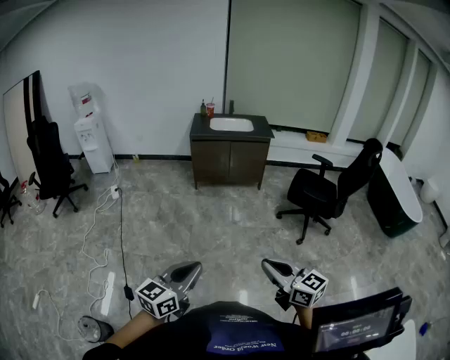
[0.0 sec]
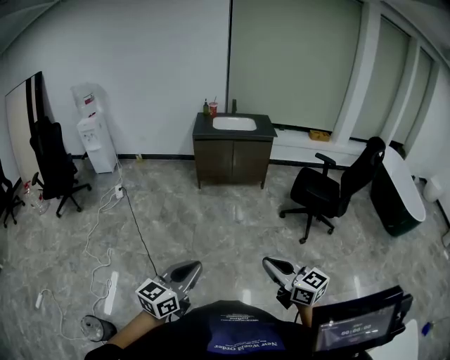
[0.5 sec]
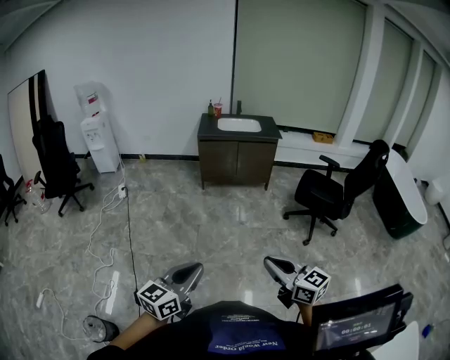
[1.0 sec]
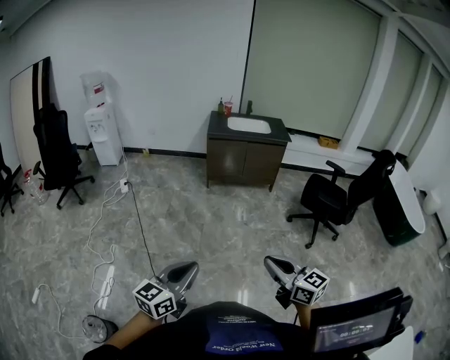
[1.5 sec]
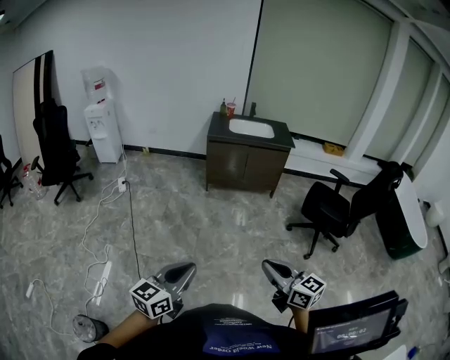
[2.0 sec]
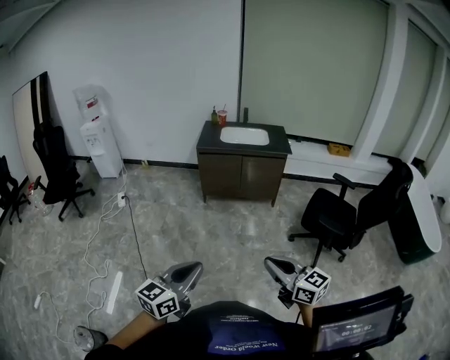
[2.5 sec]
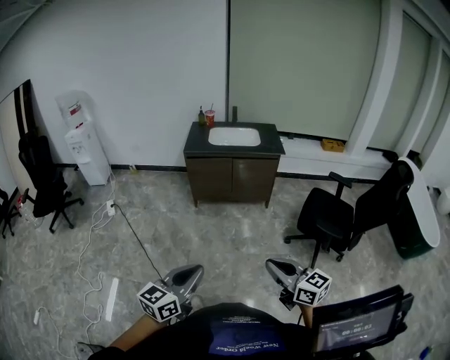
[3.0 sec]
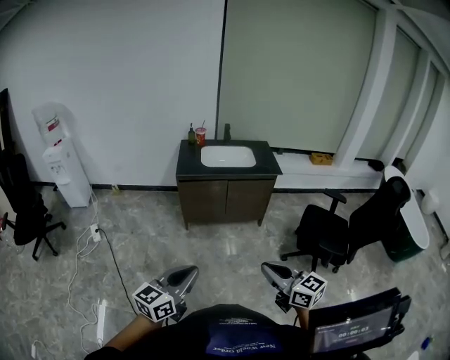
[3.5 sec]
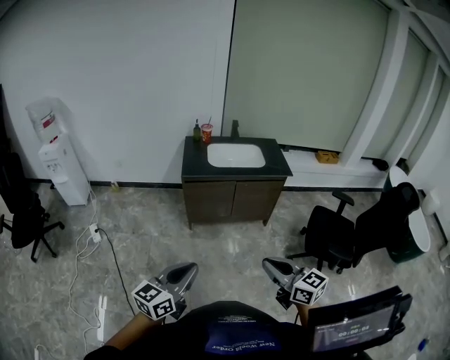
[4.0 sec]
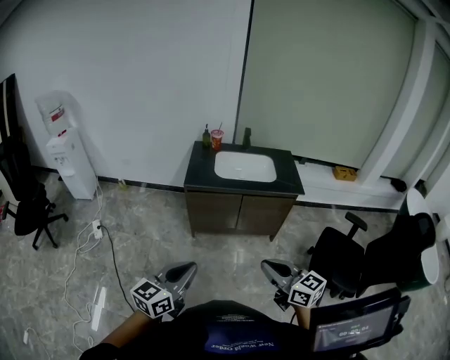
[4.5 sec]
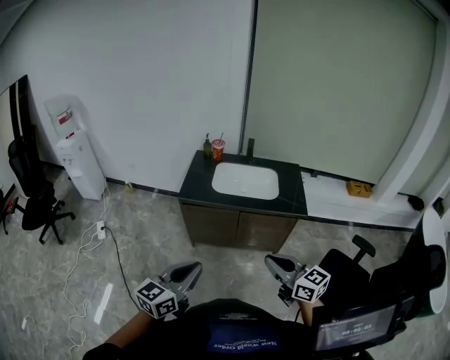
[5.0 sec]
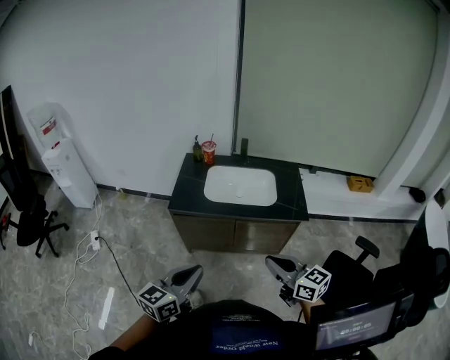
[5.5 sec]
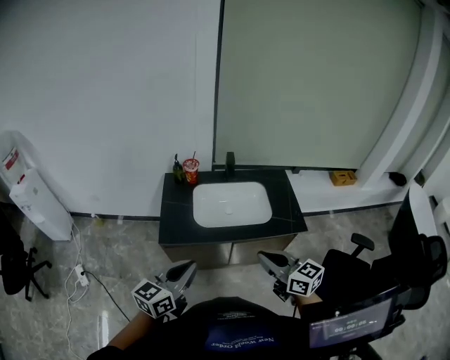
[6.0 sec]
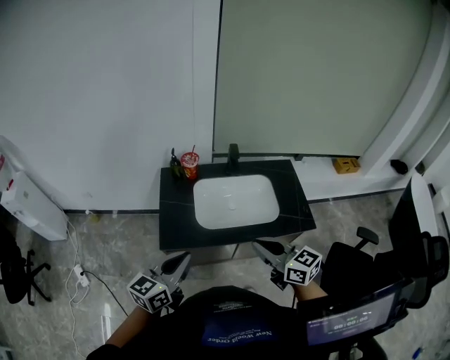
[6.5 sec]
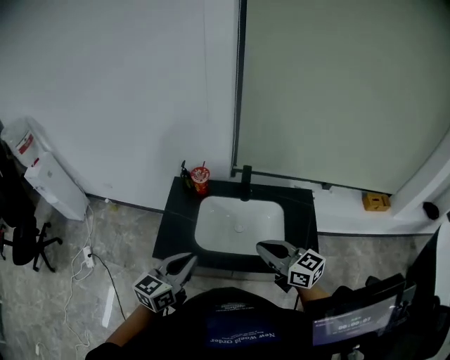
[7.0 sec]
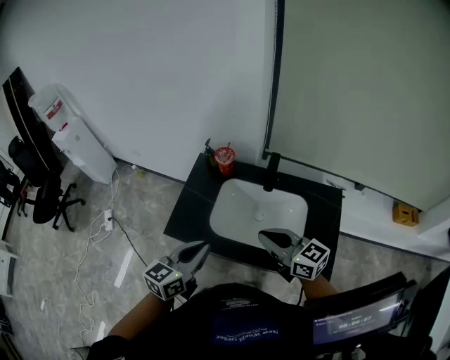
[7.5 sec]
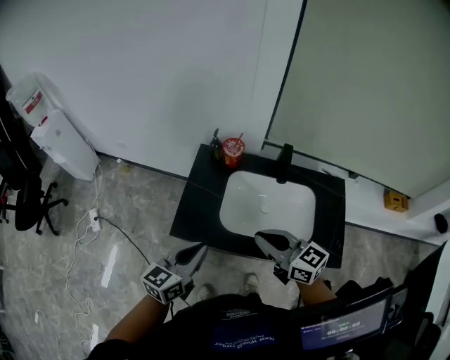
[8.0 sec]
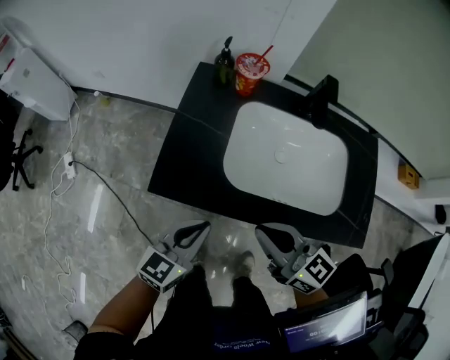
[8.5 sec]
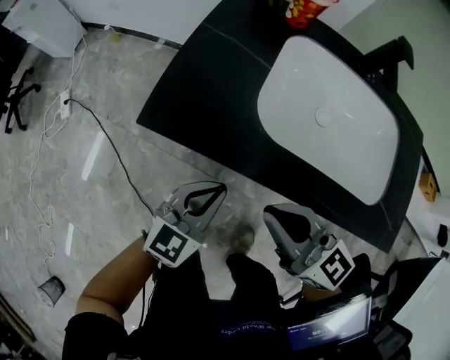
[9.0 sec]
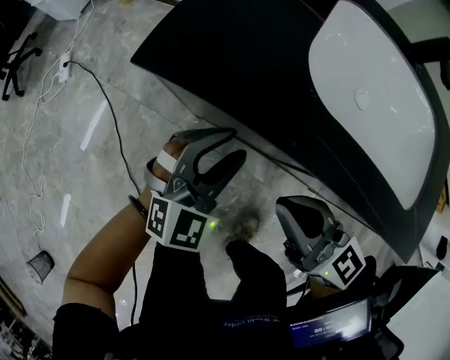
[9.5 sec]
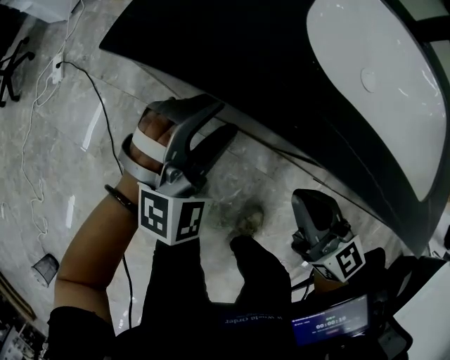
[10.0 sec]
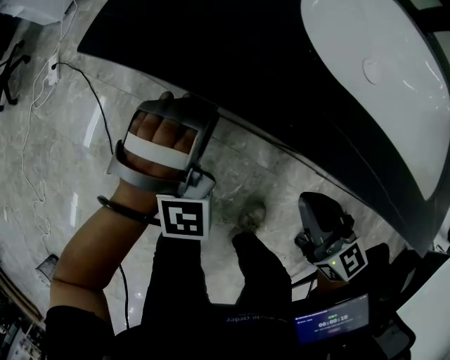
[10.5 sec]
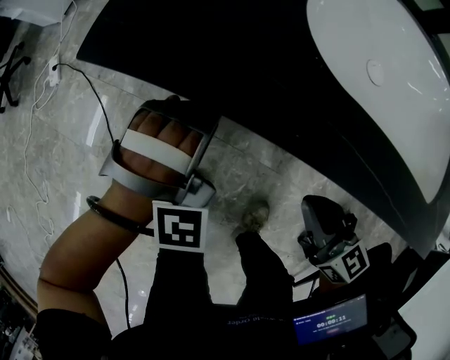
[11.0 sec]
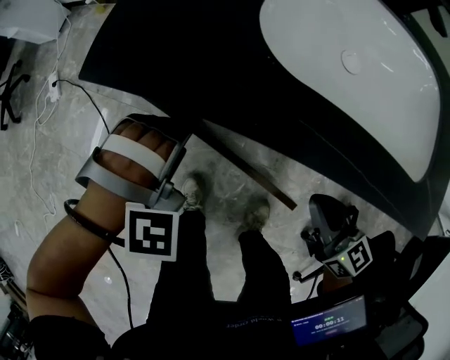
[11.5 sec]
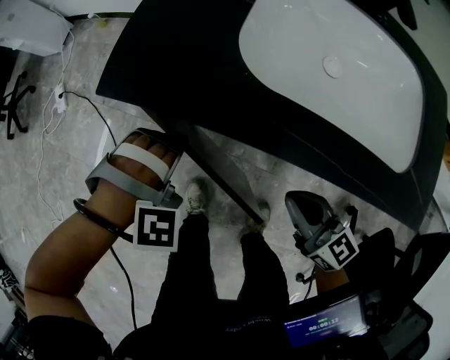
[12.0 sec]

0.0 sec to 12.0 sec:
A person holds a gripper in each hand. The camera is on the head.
0.0 sec to 2.0 sec: Both grippers move forward and to the left, some 15 cm.
2.0 sec to 4.0 sec: Both grippers are carried forward, approximately 50 cm.
4.0 sec to 6.0 sec: The pair of grippers is taken forward, about 50 cm.
6.0 sec to 8.0 sec: The right gripper moves some 25 cm, and rotates about 20 degrees; the left gripper moves some 20 cm.
8.0 sec to 10.0 sec: The grippers both shift downward by roughly 35 cm. The left gripper twists roughly 70 degrees clockwise, seen from behind, and opens up.
10.0 sec to 12.0 sec: The left gripper goes some 5 cm to the left, and tilts its fingers some 40 degrees downward.

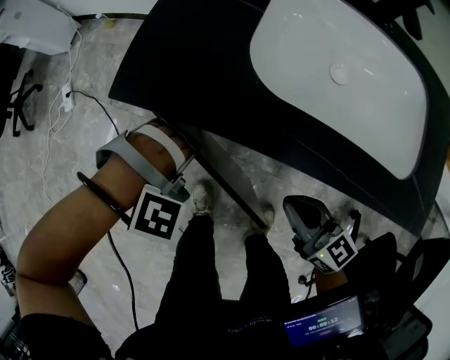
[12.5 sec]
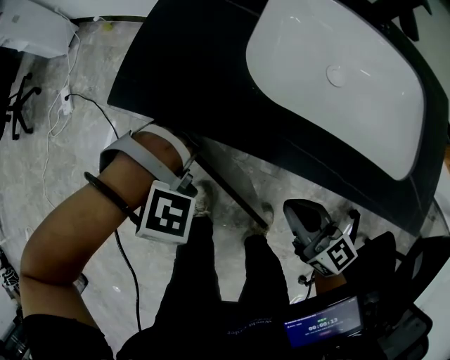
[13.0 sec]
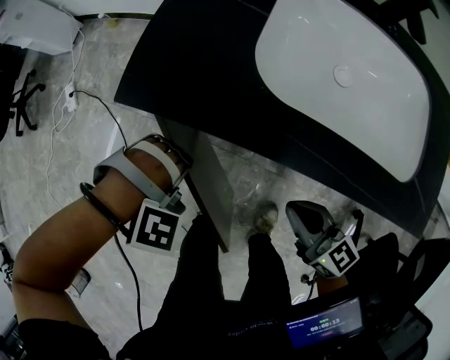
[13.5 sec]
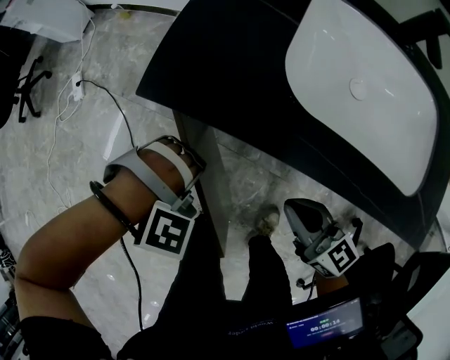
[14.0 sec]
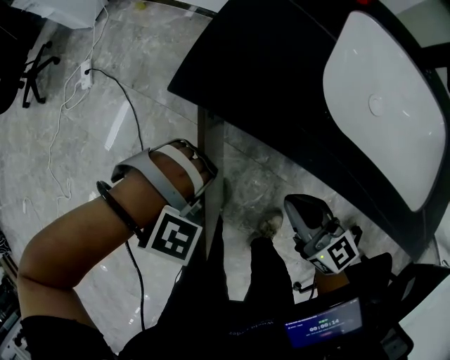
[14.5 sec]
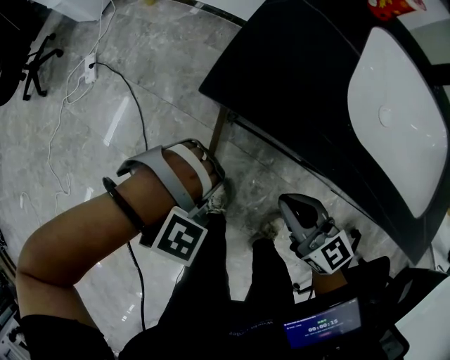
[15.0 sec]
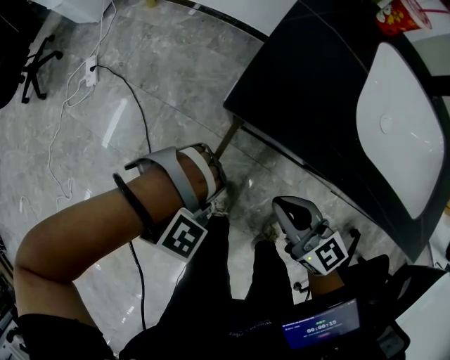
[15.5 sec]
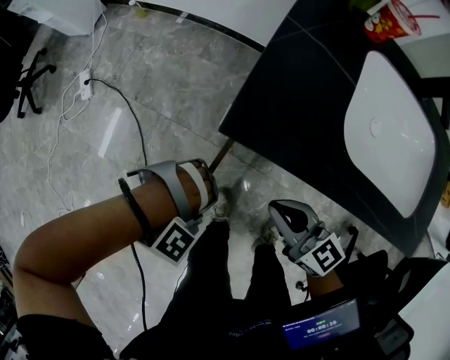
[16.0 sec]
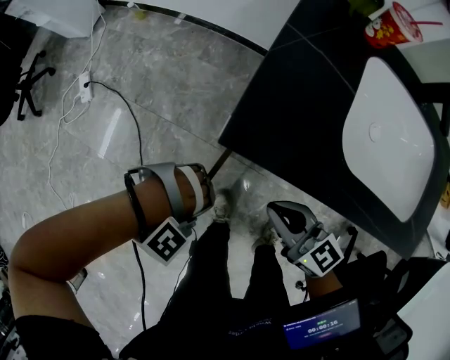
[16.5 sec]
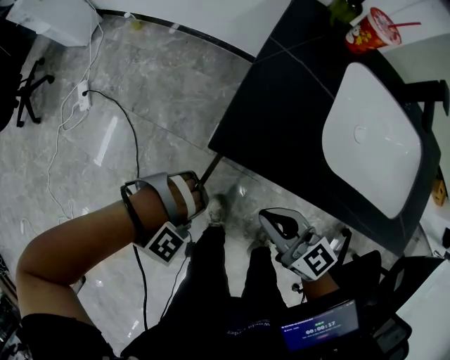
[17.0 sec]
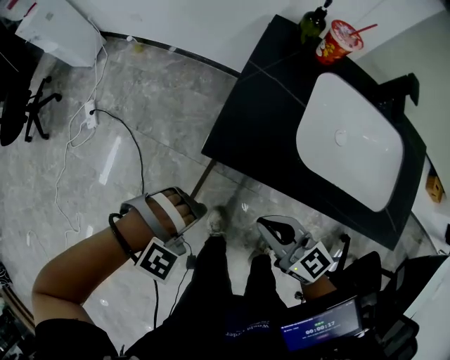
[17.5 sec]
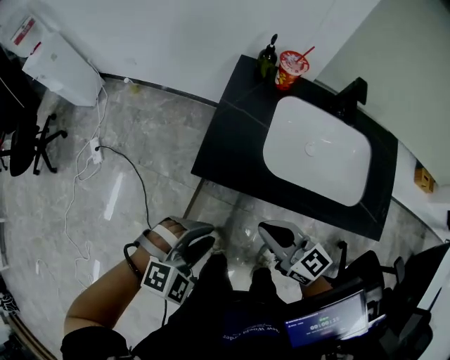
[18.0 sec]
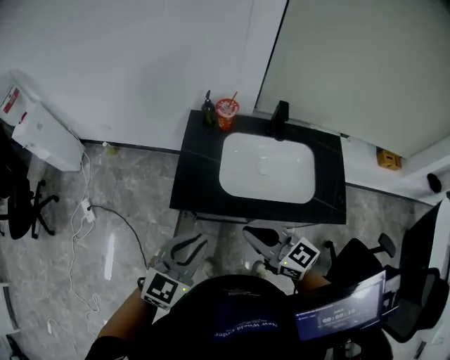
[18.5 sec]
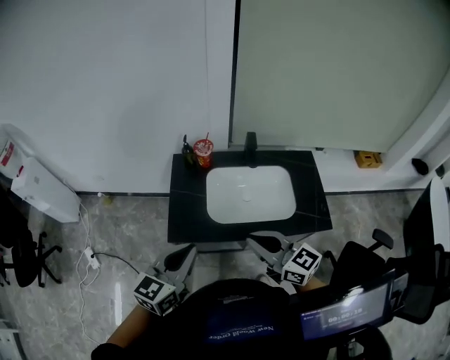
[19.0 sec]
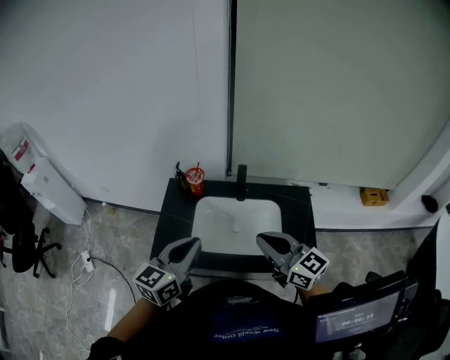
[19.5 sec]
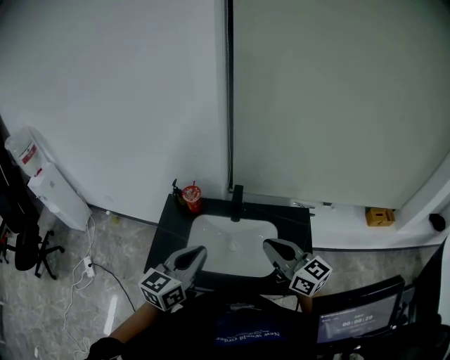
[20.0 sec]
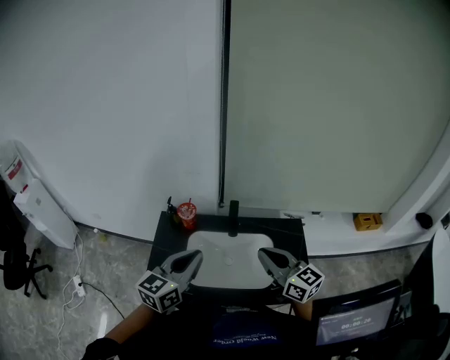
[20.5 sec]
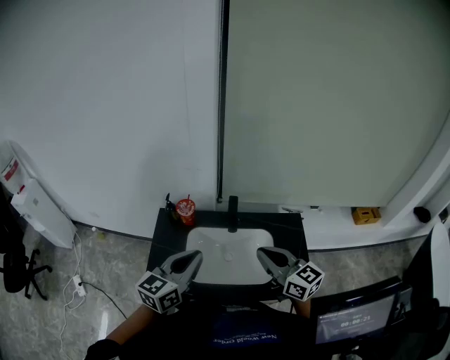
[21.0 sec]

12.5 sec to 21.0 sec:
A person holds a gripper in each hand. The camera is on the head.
12.5 sec to 14.5 sec: The left gripper heads to the left, covering roughly 10 cm. Meanwhile the right gripper moves to the left and forward, roughly 10 cm.
14.5 sec to 16.5 sec: The right gripper changes place by some 10 cm; the left gripper changes place by some 10 cm, and swivels approximately 30 degrees.
16.5 sec to 19.0 sec: The two grippers go about 40 cm upward. The right gripper swivels approximately 30 degrees. Meanwhile the left gripper tilts its fingers roughly 60 degrees upward, and closes.
19.0 sec to 21.0 sec: The right gripper shifts approximately 20 cm to the right and forward. The left gripper goes roughly 20 cm forward and to the right.

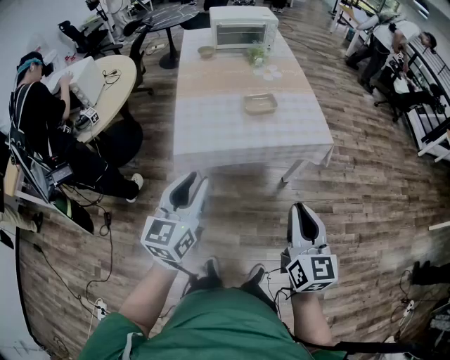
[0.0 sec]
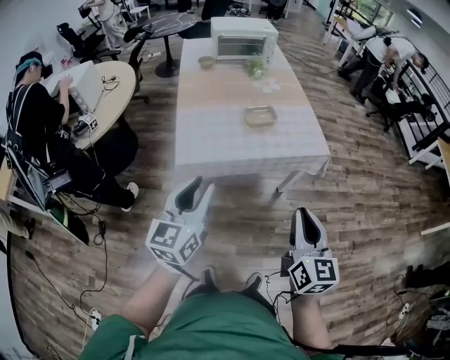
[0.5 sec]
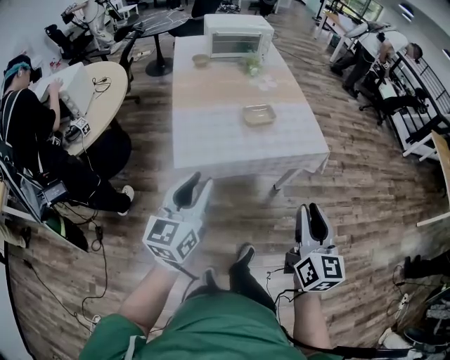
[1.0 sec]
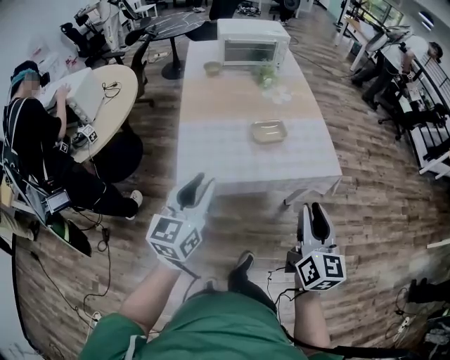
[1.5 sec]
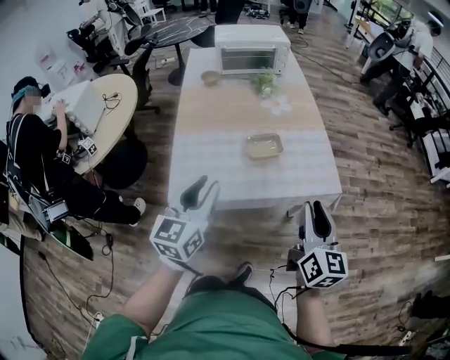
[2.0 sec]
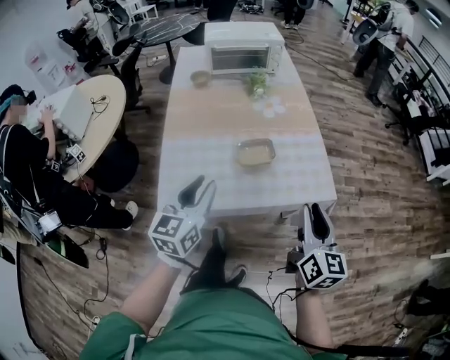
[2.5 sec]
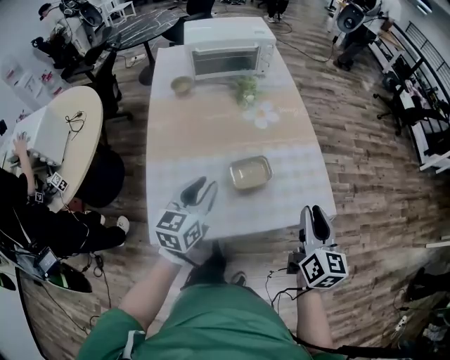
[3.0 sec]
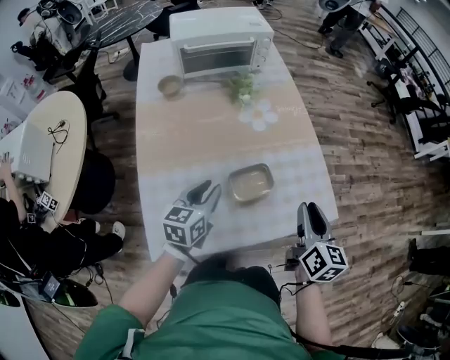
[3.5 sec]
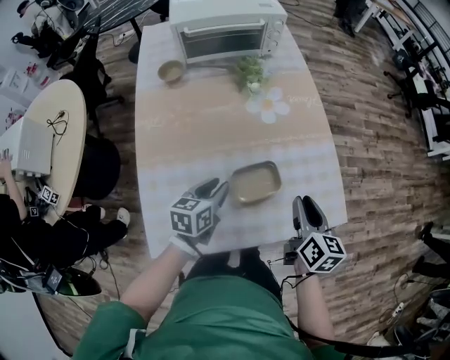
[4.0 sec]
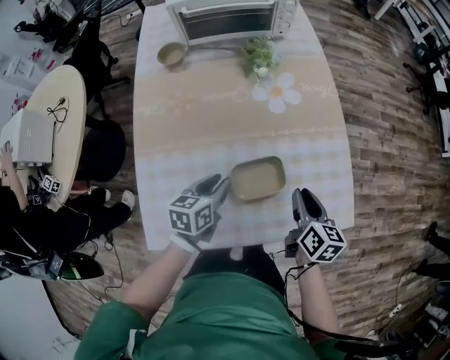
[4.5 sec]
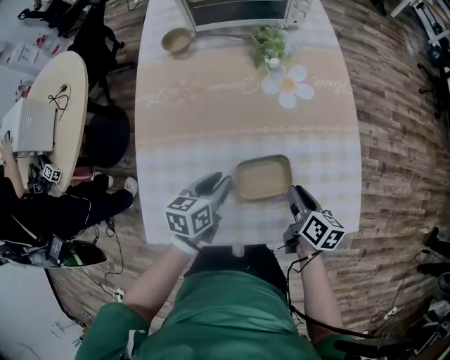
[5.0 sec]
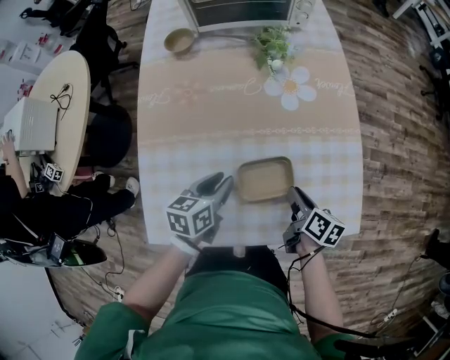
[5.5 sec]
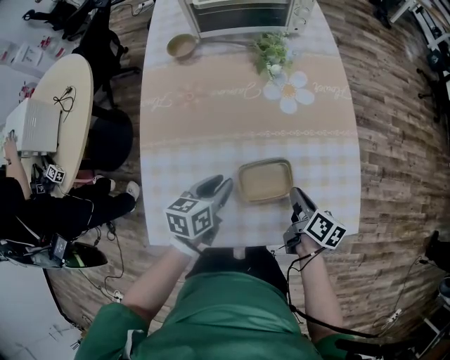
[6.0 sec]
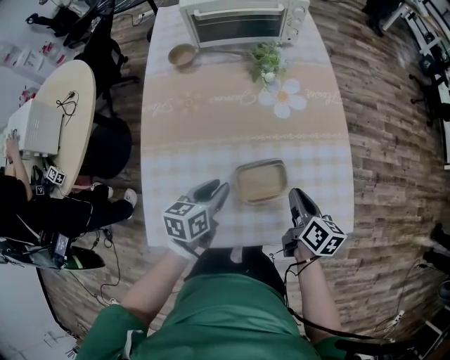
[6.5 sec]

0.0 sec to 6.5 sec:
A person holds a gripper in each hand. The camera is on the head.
0.0 sec to 2.0 sec: Both grippers move forward, about 25 cm.
2.0 sec to 4.5 sec: The two grippers go about 40 cm forward and downward. The left gripper swivels some 40 degrees. The right gripper turns by some 30 degrees.
4.5 sec to 6.5 sec: The right gripper goes downward and returns, about 10 cm each way.
